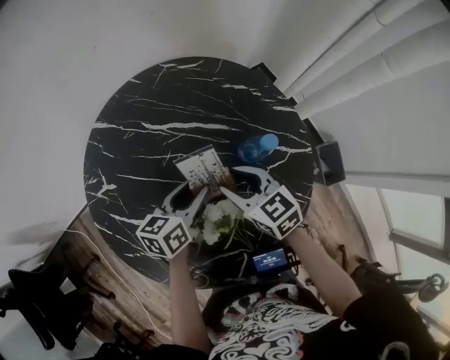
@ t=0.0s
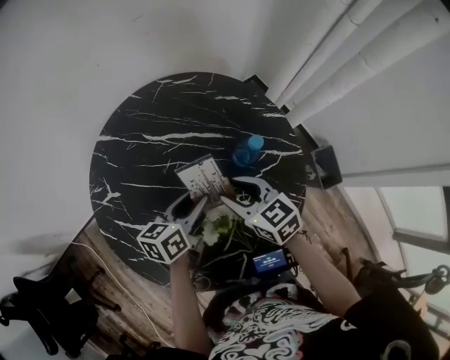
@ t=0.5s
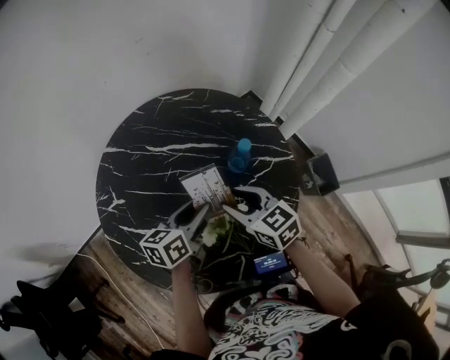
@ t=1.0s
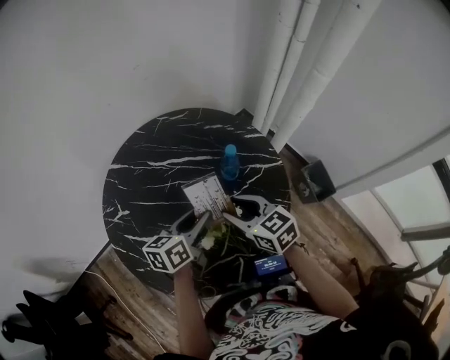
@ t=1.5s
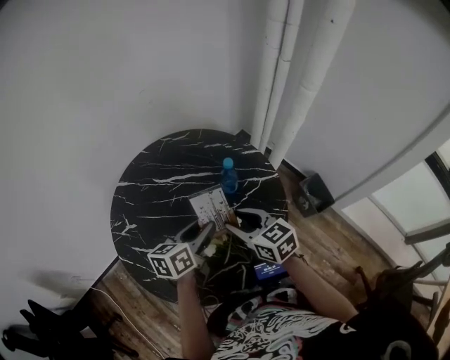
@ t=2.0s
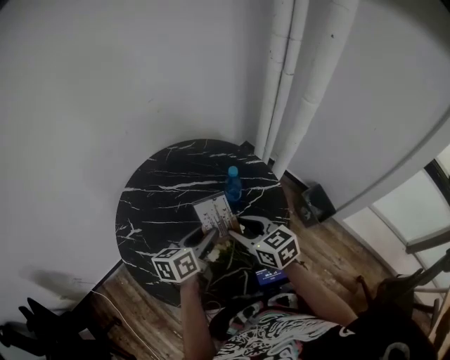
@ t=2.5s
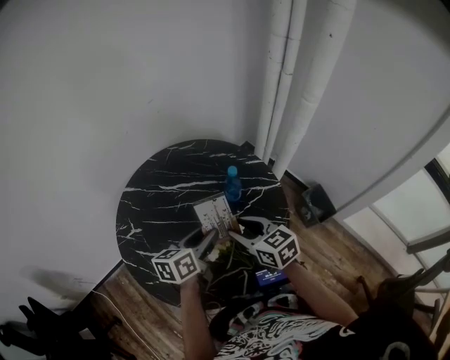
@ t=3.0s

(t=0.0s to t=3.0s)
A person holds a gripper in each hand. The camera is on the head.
t=0.0s - t=1.5s: The two grippers go about 10 cm upward and backward.
t=1.5s - t=3.0s: The grippers stay close to where they were, moving slightly.

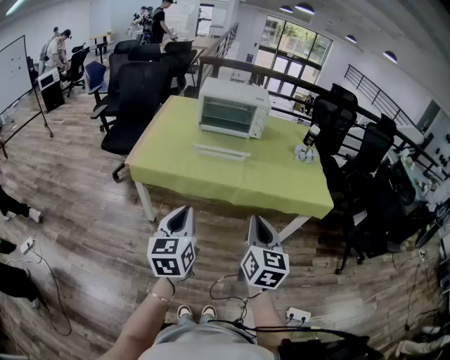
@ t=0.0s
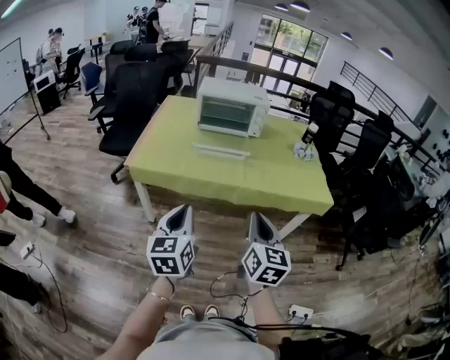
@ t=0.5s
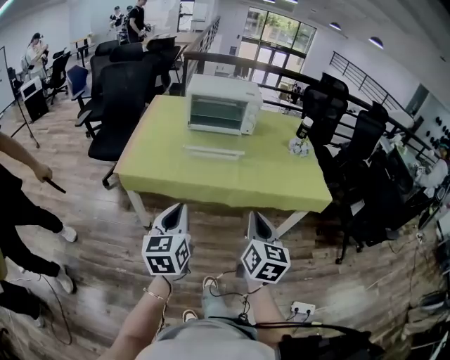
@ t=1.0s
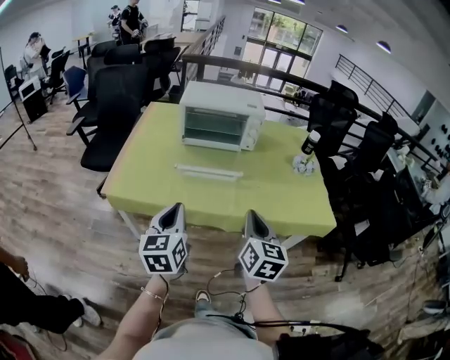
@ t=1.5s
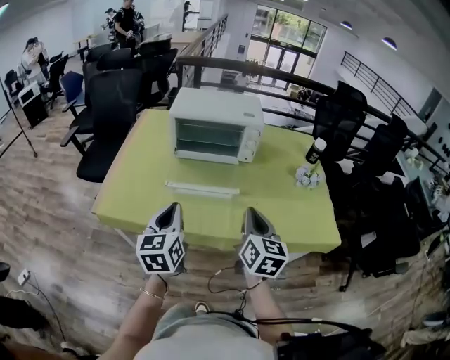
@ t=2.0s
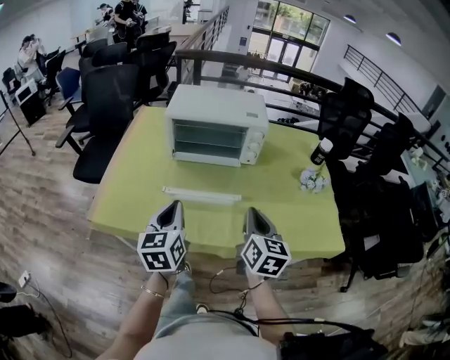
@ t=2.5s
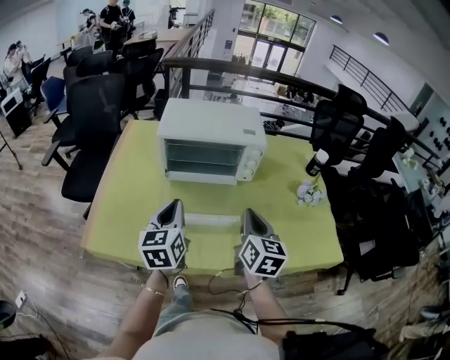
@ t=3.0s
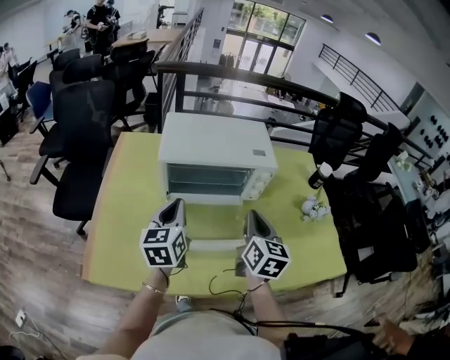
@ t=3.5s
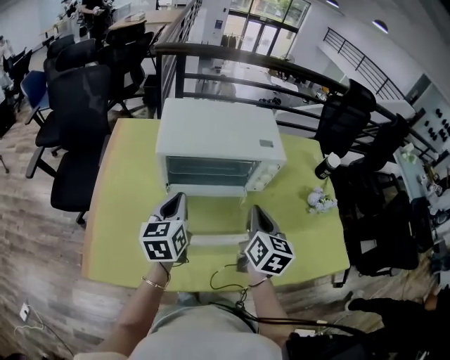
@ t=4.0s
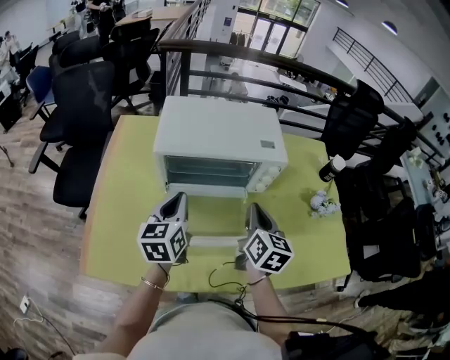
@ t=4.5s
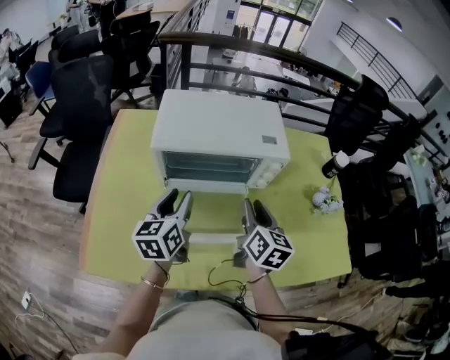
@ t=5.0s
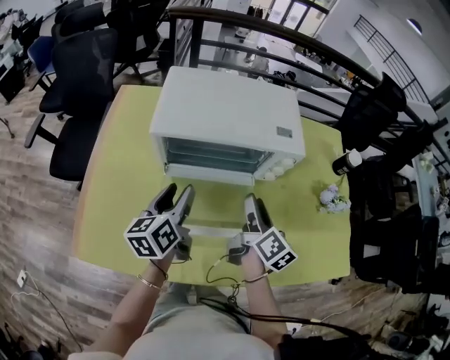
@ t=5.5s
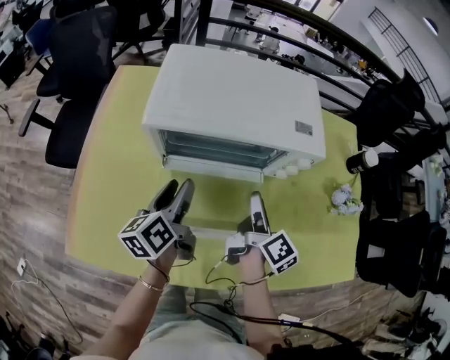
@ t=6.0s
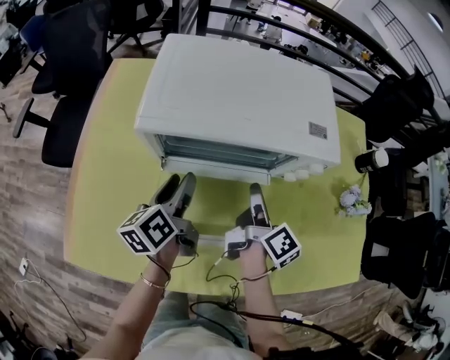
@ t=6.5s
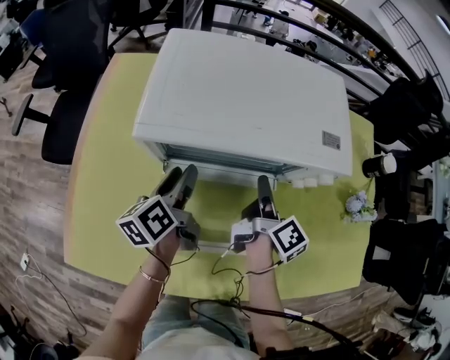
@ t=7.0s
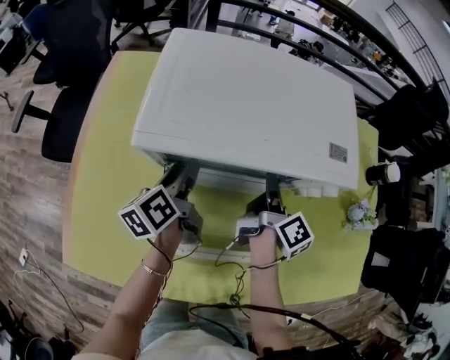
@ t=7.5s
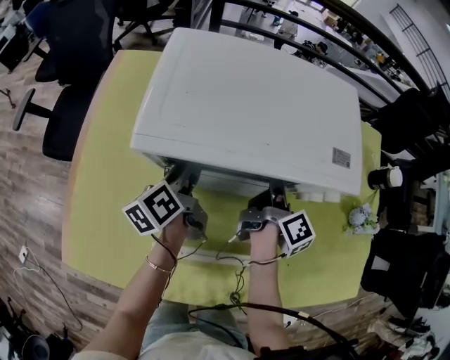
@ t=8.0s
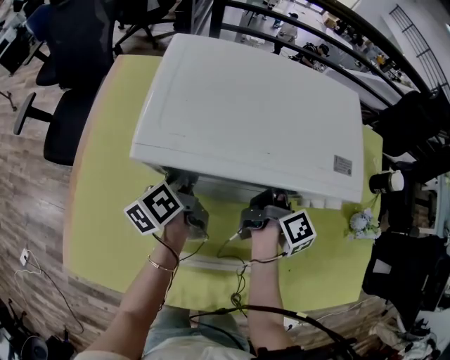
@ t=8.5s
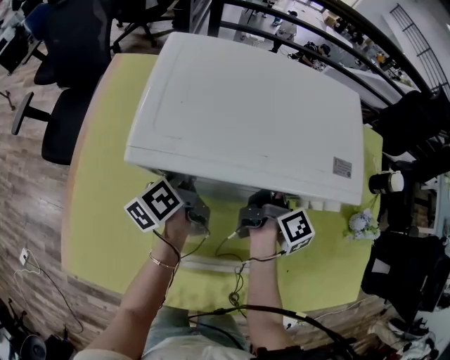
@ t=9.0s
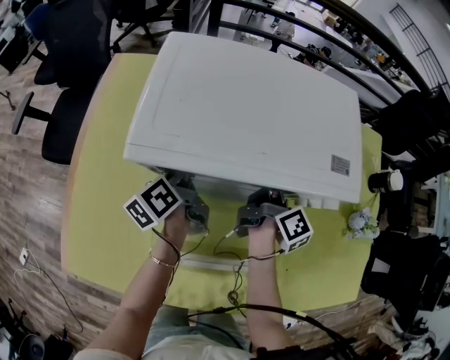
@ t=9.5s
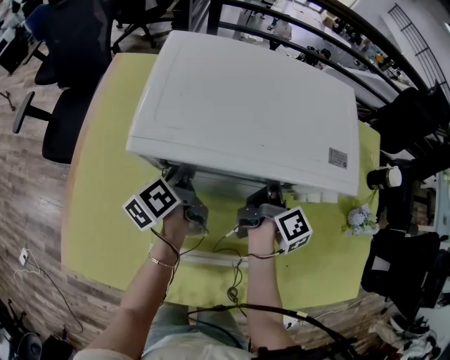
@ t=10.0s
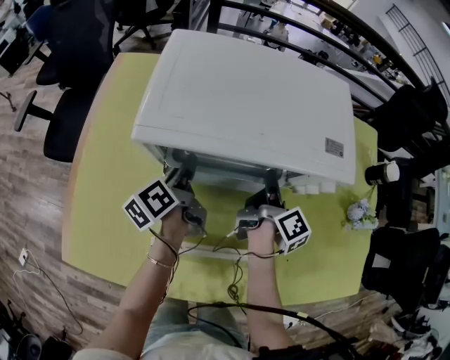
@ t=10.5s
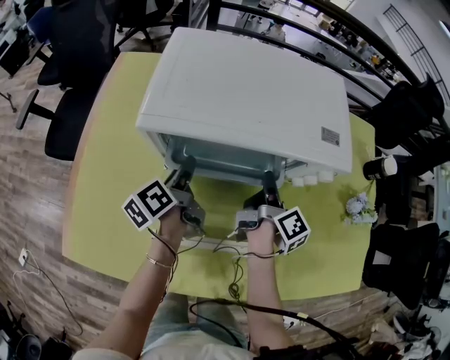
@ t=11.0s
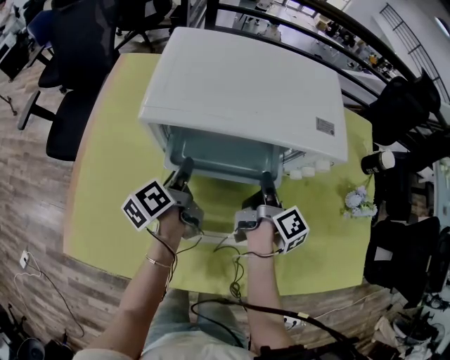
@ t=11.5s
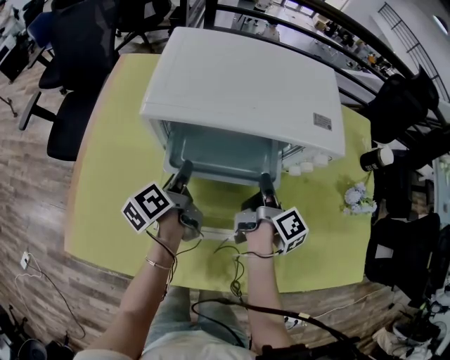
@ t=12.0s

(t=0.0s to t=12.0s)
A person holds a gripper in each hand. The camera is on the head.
t=0.0s - t=2.0s: The two grippers go approximately 35 cm forward.
t=2.0s - t=4.0s: The two grippers go some 30 cm forward.
t=4.0s - t=6.0s: The right gripper moves downward and forward, approximately 15 cm, twists roughly 50 degrees clockwise, seen from behind, and opens up; the left gripper heads downward, covering some 10 cm, turns by some 30 degrees, and opens its fingers.
t=6.0s - t=8.0s: The right gripper is displaced forward by approximately 15 cm. Meanwhile the left gripper goes roughly 15 cm forward and downward.
t=8.0s - t=10.0s: The grippers stay close to where they were, moving slightly.
t=10.0s - t=12.0s: Both grippers move backward, roughly 10 cm.

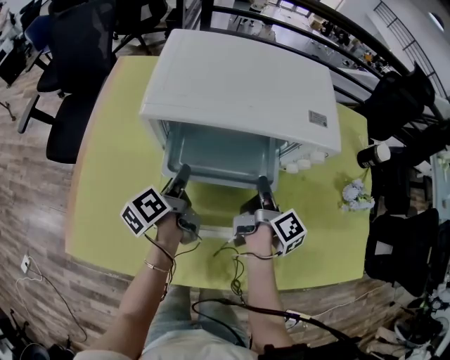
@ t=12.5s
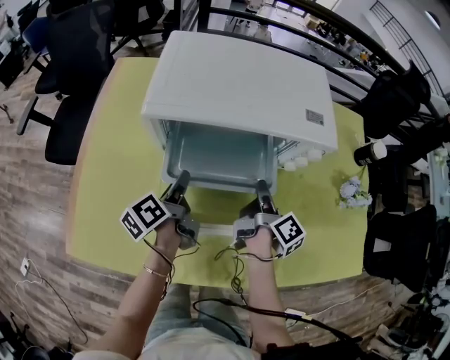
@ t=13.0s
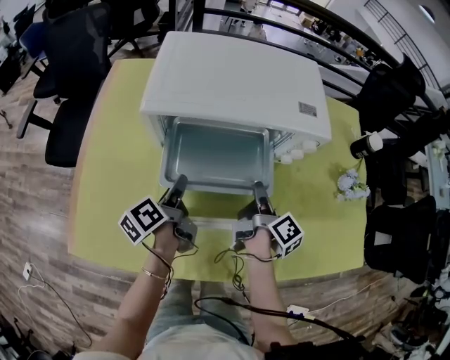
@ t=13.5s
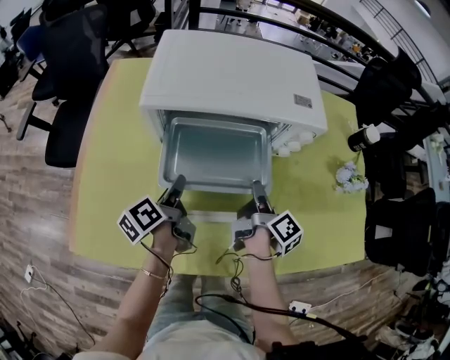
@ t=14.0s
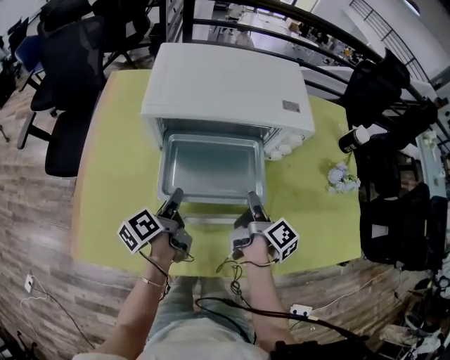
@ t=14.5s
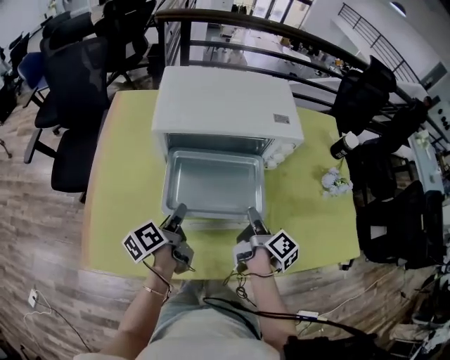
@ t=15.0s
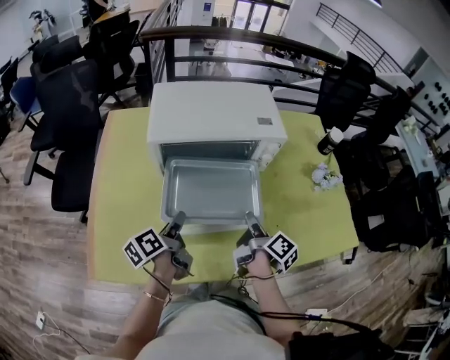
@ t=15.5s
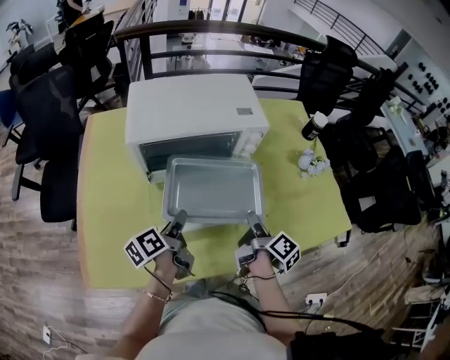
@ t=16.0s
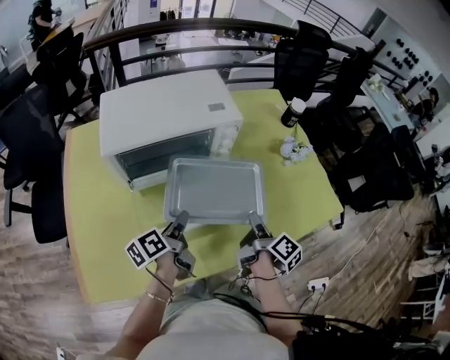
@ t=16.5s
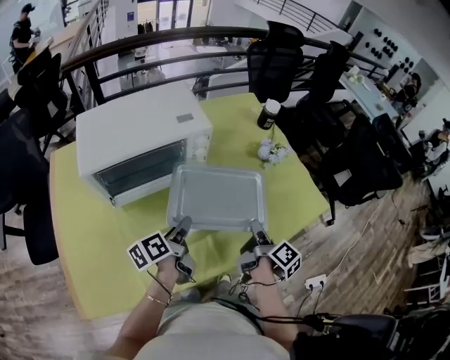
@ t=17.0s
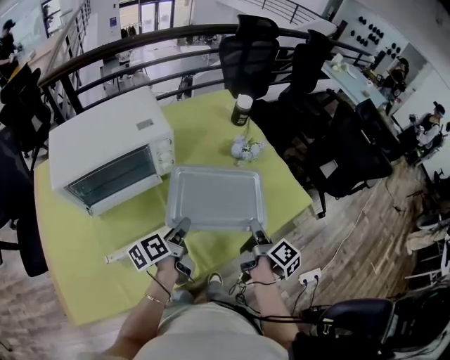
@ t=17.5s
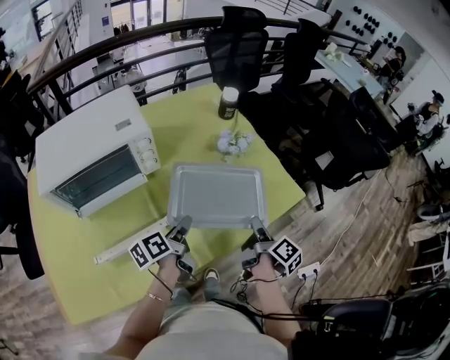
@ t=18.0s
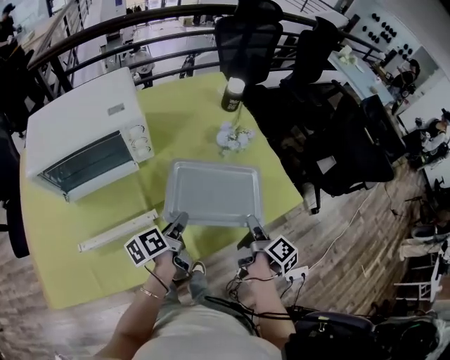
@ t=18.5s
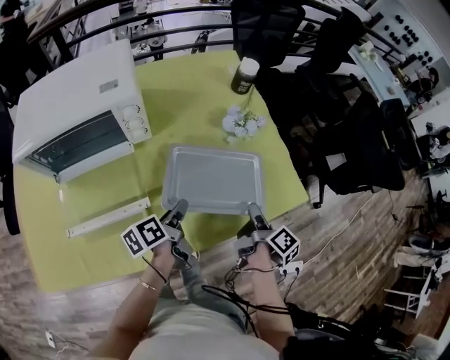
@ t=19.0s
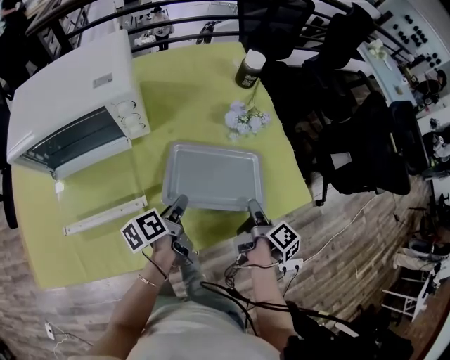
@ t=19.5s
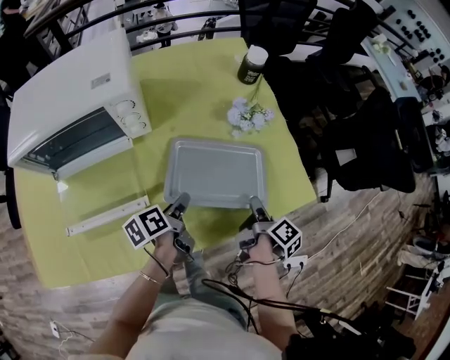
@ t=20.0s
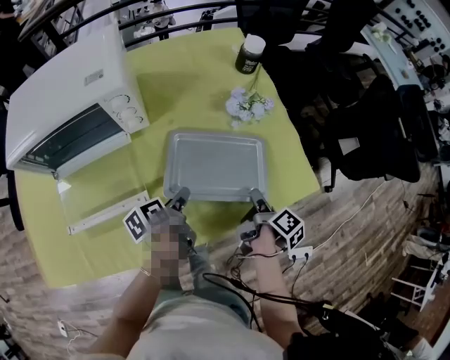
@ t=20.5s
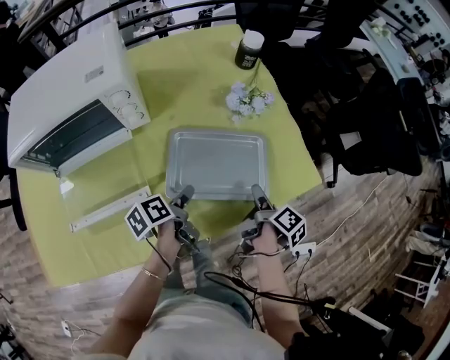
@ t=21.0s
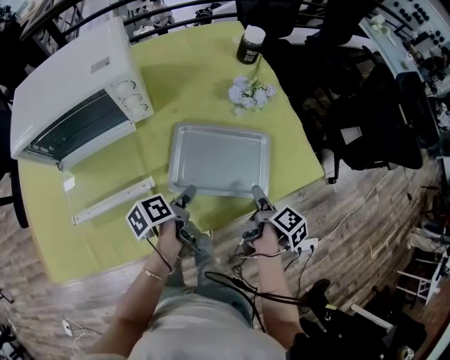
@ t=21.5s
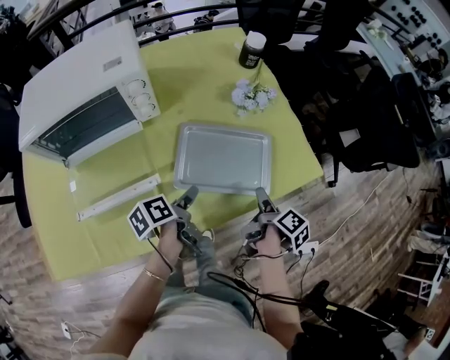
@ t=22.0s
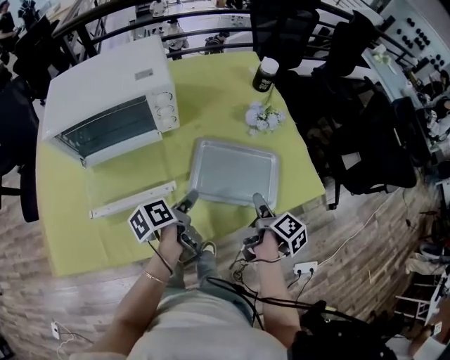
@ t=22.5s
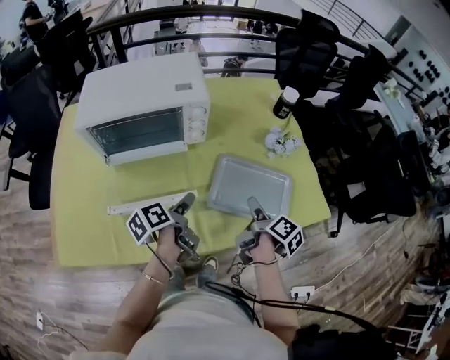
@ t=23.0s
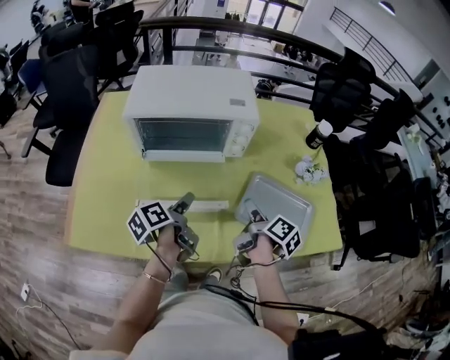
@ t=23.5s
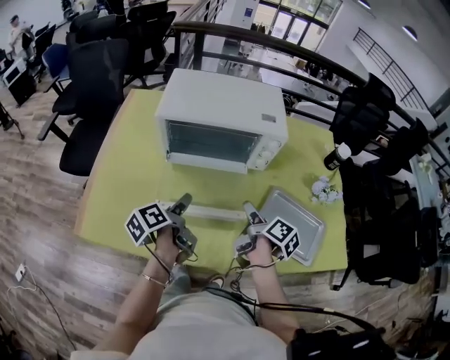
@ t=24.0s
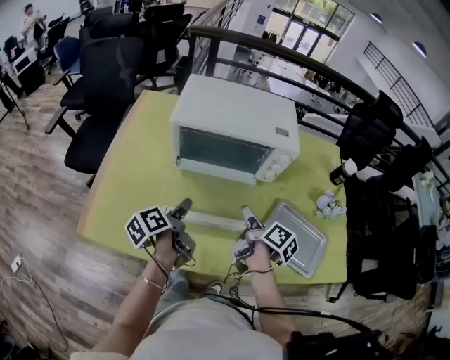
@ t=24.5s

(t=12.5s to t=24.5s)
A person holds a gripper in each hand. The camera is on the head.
t=12.5s - t=14.5s: The two grippers go approximately 10 cm backward.
t=14.5s - t=16.5s: The right gripper shifts some 15 cm to the right and backward. Meanwhile the left gripper is displaced to the right by some 10 cm, and rotates some 30 degrees.
t=16.5s - t=18.5s: The two grippers go roughly 25 cm to the right.
t=18.5s - t=20.5s: The left gripper travels downward by some 5 cm; the right gripper is displaced downward and forward by some 10 cm.
t=20.5s - t=22.5s: The left gripper heads backward and upward, covering roughly 10 cm, while the right gripper shifts about 5 cm backward, and opens up.
t=22.5s - t=24.5s: The left gripper ends up approximately 30 cm from where it was, and turns by some 30 degrees. Meanwhile the right gripper shifts by some 35 cm, and swivels approximately 40 degrees.
